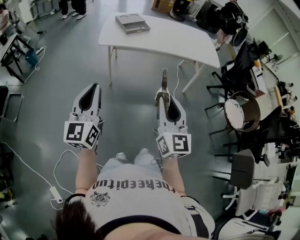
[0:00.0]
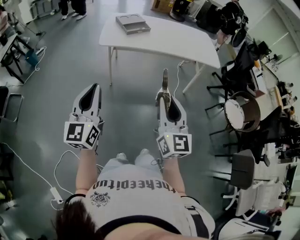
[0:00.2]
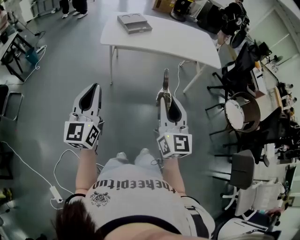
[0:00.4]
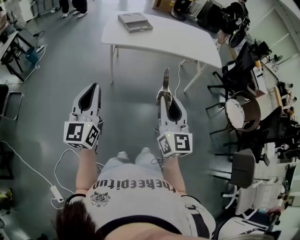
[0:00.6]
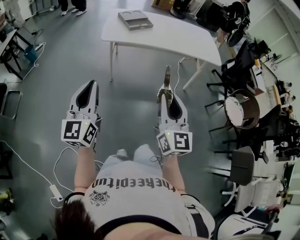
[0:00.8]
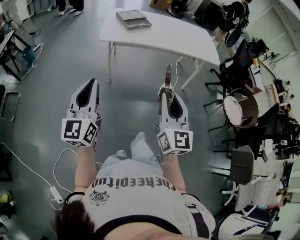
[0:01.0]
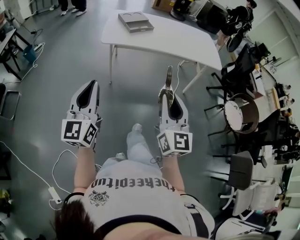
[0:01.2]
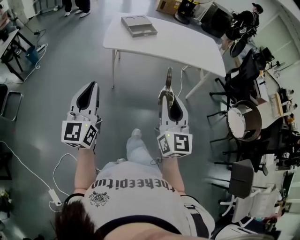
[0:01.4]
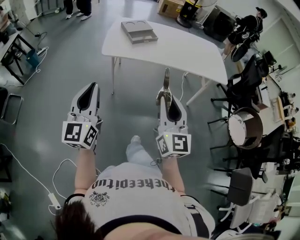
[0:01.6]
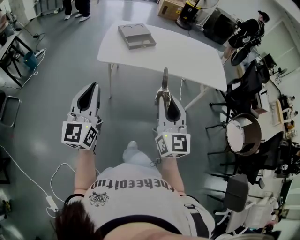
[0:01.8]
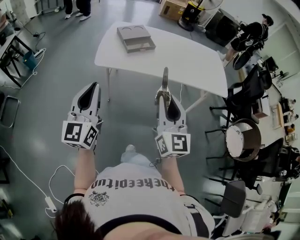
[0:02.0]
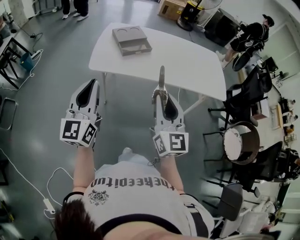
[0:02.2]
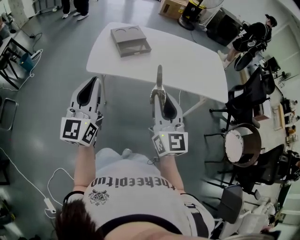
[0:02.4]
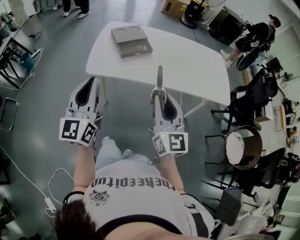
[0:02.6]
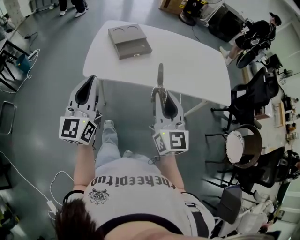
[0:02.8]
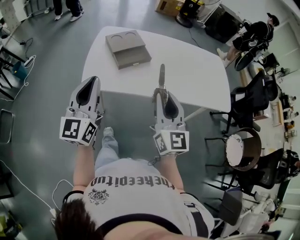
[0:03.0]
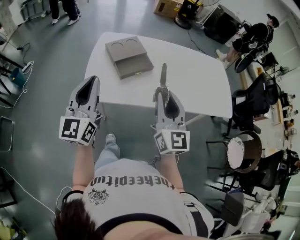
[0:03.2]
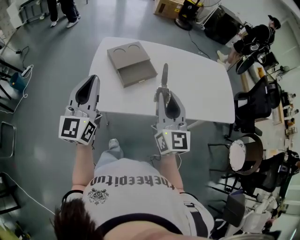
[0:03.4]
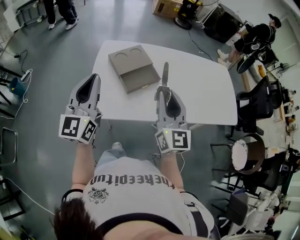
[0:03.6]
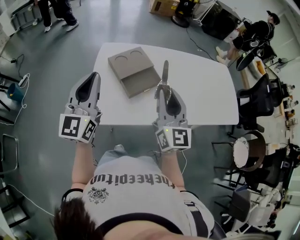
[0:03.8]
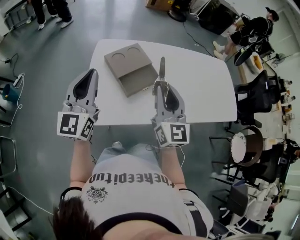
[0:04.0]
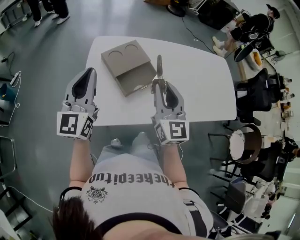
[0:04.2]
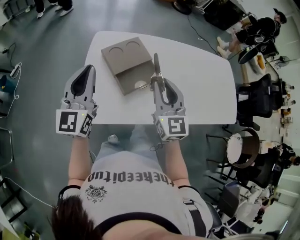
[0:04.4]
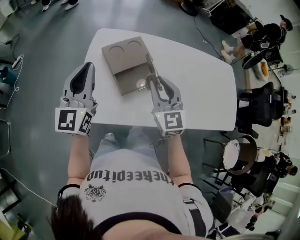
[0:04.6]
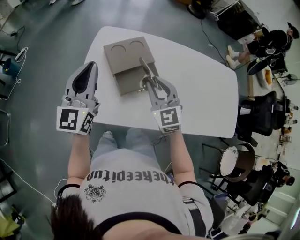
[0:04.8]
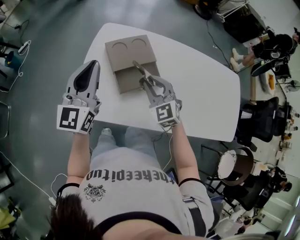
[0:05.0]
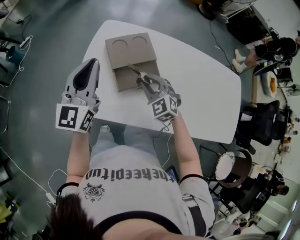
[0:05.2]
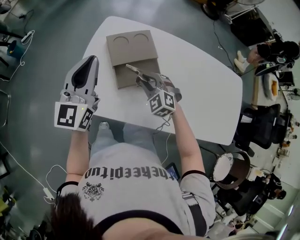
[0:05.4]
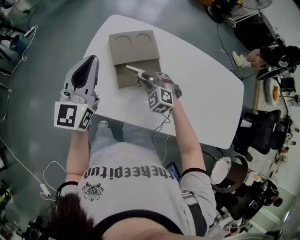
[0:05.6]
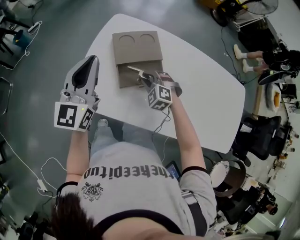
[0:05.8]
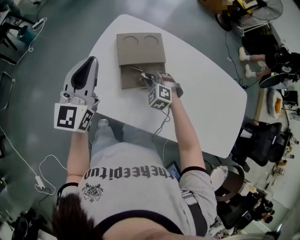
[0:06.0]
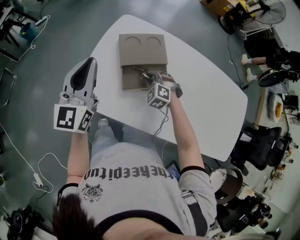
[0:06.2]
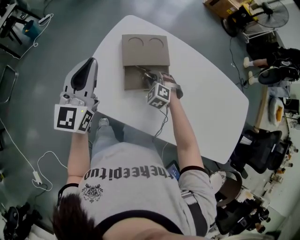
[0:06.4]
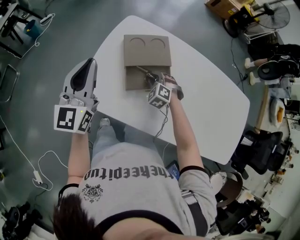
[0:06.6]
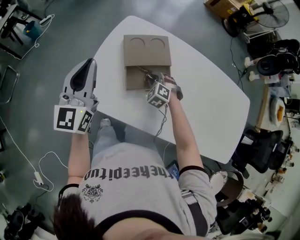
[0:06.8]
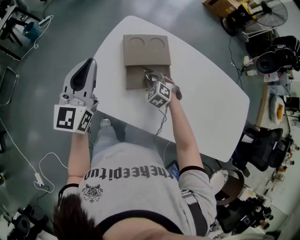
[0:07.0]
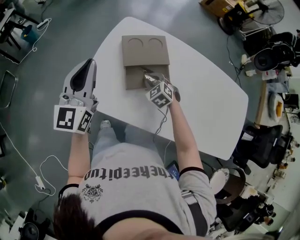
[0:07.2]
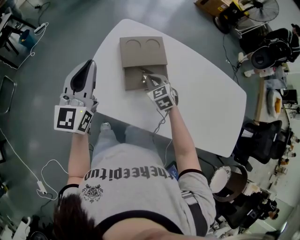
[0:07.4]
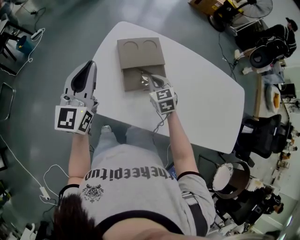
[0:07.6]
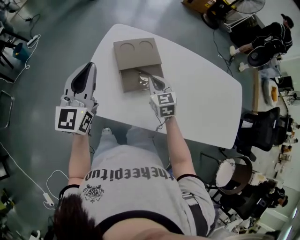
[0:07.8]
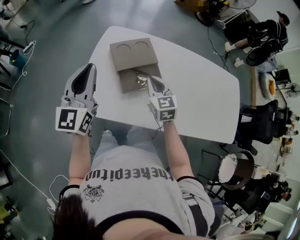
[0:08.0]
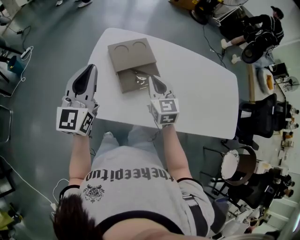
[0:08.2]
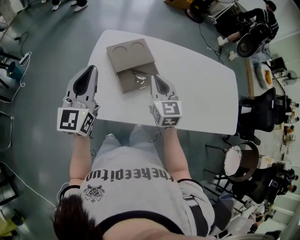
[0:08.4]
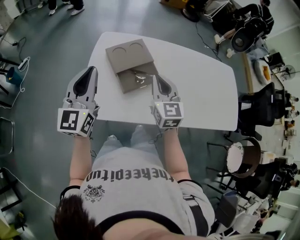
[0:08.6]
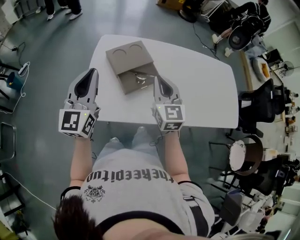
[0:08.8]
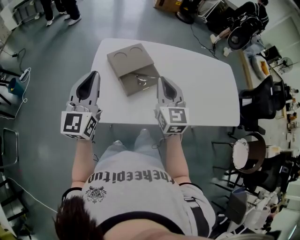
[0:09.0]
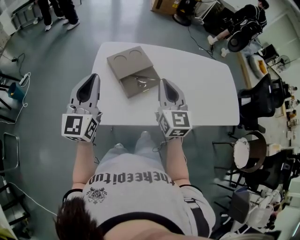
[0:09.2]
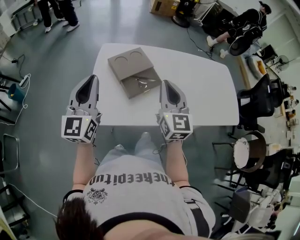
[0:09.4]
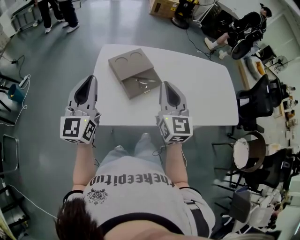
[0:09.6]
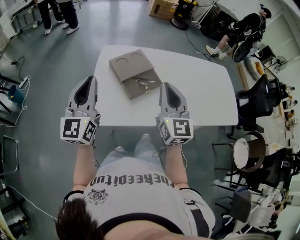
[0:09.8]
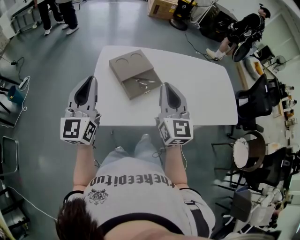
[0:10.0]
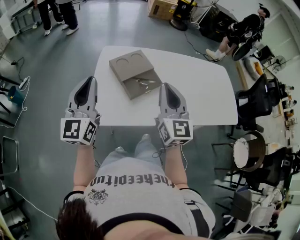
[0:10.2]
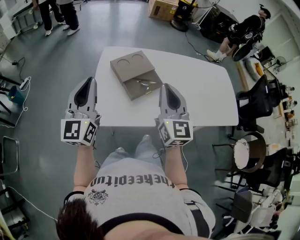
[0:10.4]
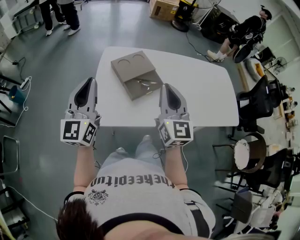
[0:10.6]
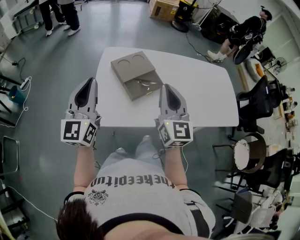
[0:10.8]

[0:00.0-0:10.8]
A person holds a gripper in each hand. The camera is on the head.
0:00.0 to 0:01.6: Both grippers move forward, about 15 cm.
0:01.6 to 0:03.0: The two grippers go about 35 cm forward.
0:03.0 to 0:04.6: Both grippers travel together forward, approximately 30 cm. The right gripper changes its angle by about 20 degrees.
0:04.6 to 0:06.2: The right gripper is displaced downward by about 25 cm, and angles its fingers downward, by roughly 40 degrees.
0:06.2 to 0:07.8: The right gripper goes roughly 10 cm upward, and rolls clockwise, seen from behind, by approximately 50 degrees.
0:07.8 to 0:09.2: The left gripper ends up approximately 5 cm from where it was, while the right gripper heads upward and backward, covering roughly 20 cm, and swivels roughly 30 degrees.
0:09.2 to 0:10.8: The left gripper shifts by about 5 cm; the right gripper ends up some 5 cm from where it was.

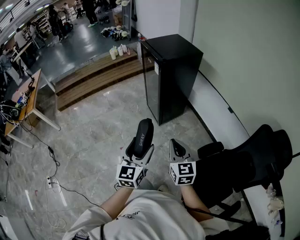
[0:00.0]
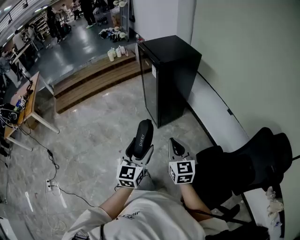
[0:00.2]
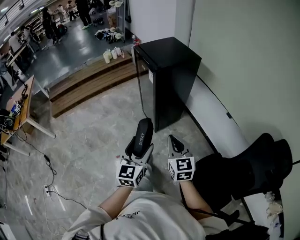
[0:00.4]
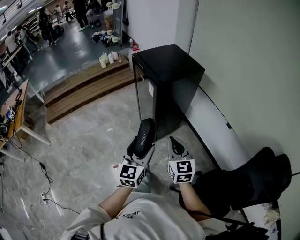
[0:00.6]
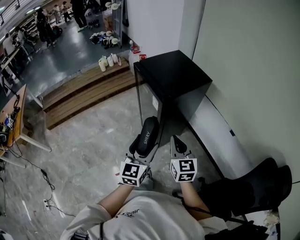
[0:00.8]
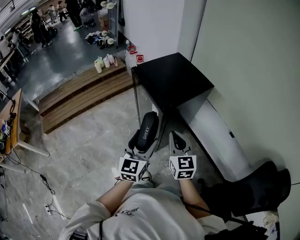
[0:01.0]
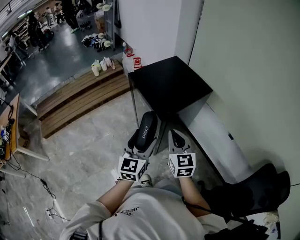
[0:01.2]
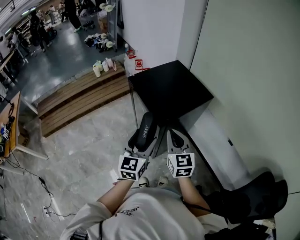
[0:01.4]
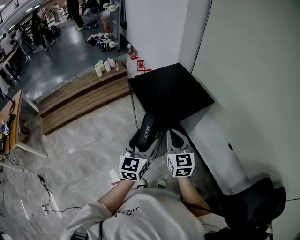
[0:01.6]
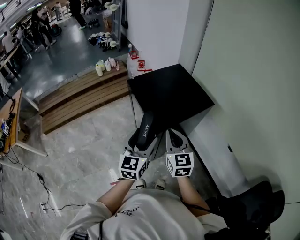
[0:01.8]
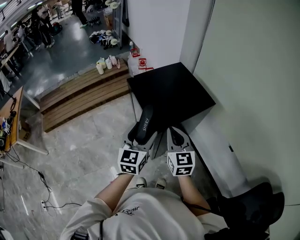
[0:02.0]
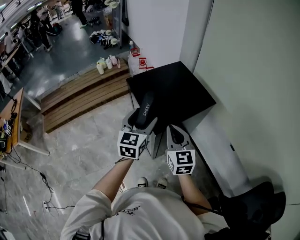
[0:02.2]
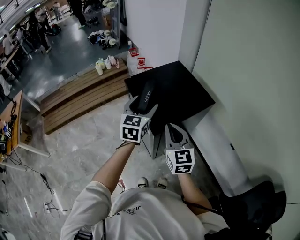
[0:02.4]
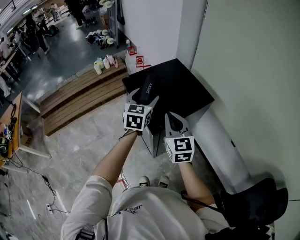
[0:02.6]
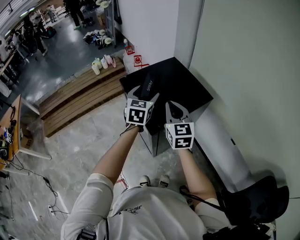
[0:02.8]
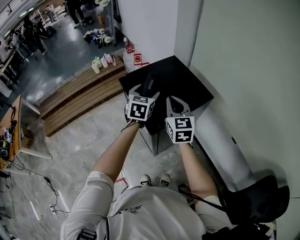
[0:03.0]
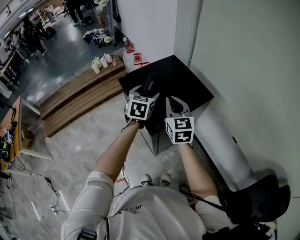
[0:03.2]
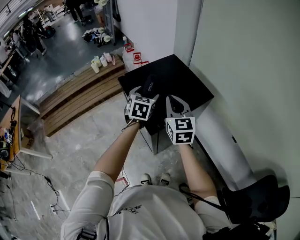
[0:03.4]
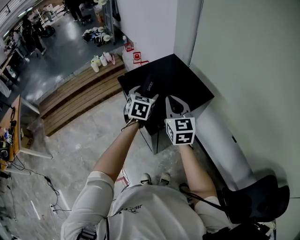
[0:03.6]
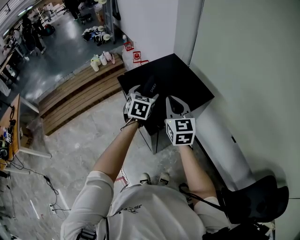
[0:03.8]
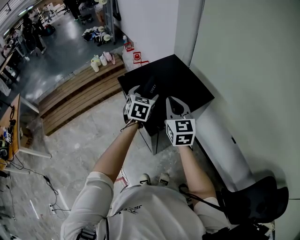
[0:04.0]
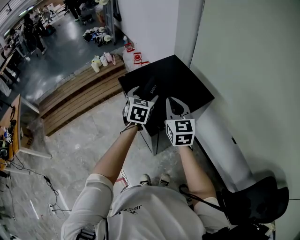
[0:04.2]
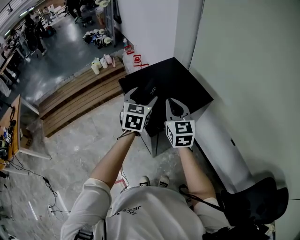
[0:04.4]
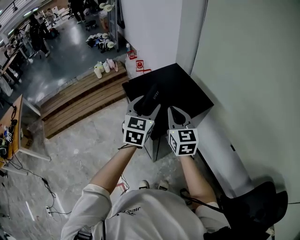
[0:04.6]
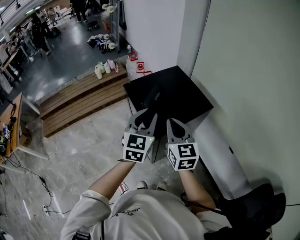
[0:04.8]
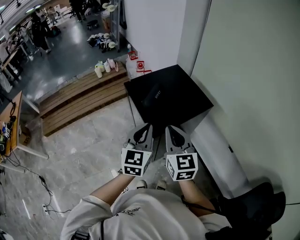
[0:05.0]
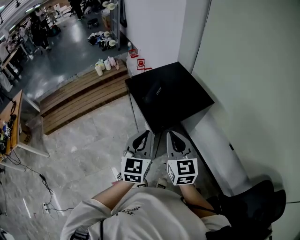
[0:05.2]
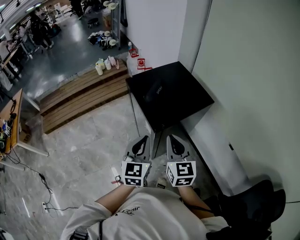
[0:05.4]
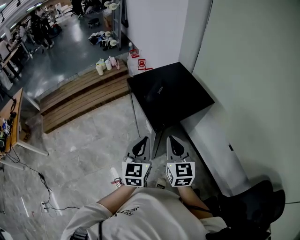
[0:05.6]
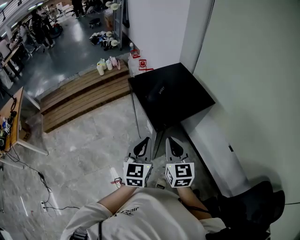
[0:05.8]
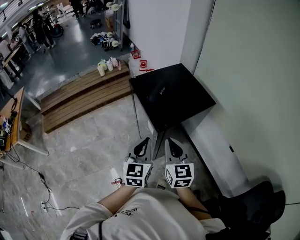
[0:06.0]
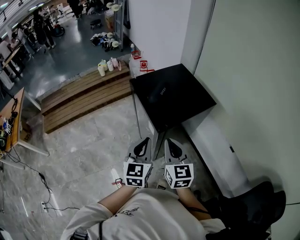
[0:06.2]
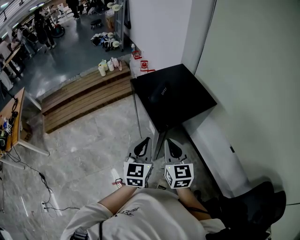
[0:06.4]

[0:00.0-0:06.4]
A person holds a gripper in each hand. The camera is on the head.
0:00.0 to 0:01.6: Both grippers are carried forward, roughly 50 cm.
0:01.6 to 0:03.2: The right gripper goes approximately 15 cm forward, while the left gripper moves forward, some 25 cm, and changes its angle by approximately 20 degrees.
0:03.2 to 0:04.8: The left gripper heads backward and upward, covering roughly 15 cm, and closes. The right gripper is displaced backward by approximately 10 cm.
0:04.8 to 0:06.4: Both grippers travel together backward and downward, approximately 15 cm.

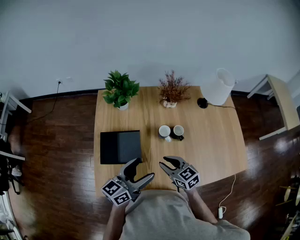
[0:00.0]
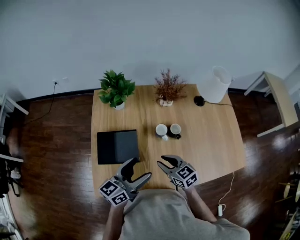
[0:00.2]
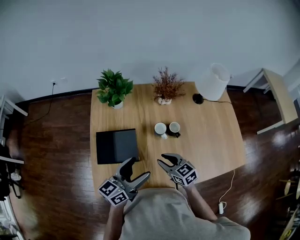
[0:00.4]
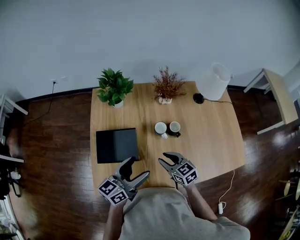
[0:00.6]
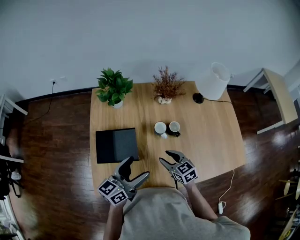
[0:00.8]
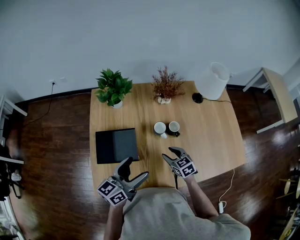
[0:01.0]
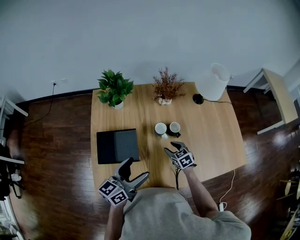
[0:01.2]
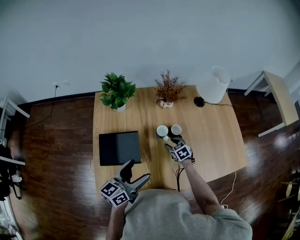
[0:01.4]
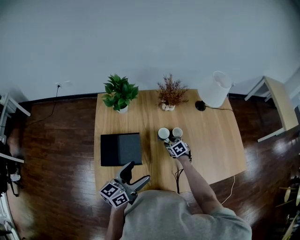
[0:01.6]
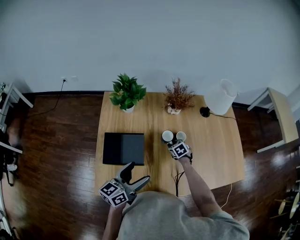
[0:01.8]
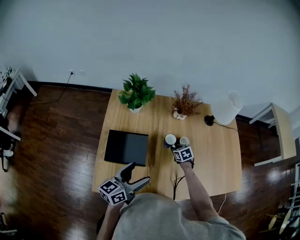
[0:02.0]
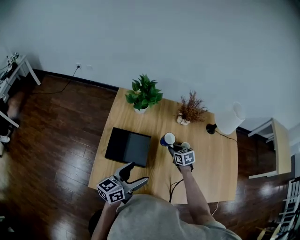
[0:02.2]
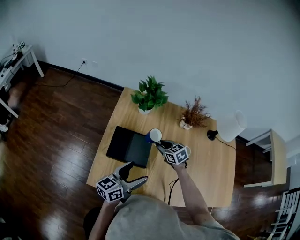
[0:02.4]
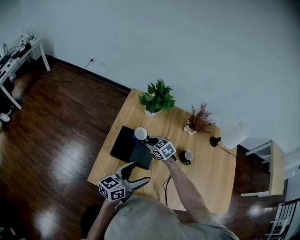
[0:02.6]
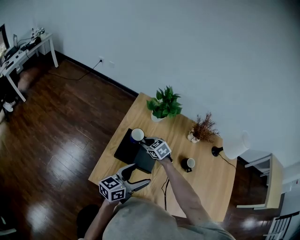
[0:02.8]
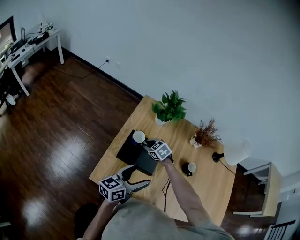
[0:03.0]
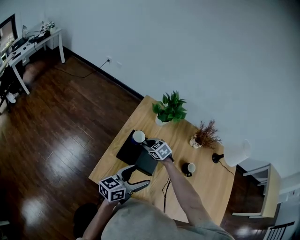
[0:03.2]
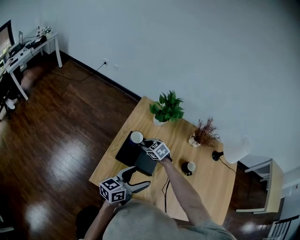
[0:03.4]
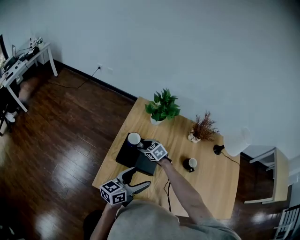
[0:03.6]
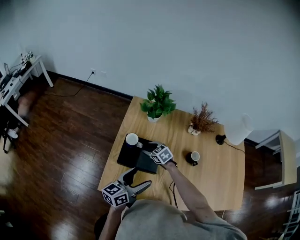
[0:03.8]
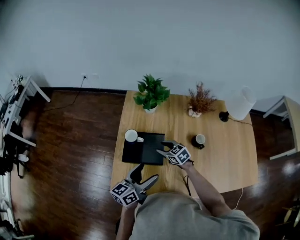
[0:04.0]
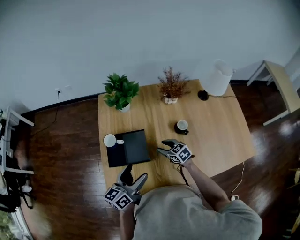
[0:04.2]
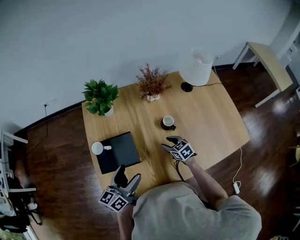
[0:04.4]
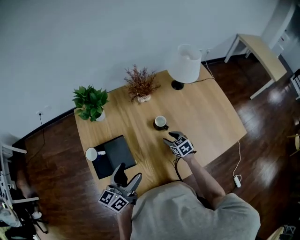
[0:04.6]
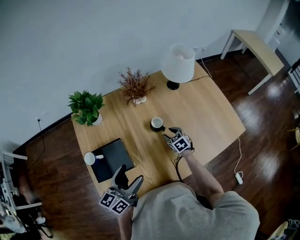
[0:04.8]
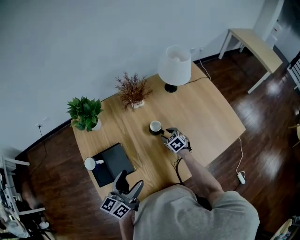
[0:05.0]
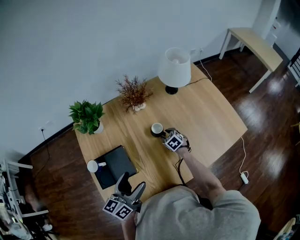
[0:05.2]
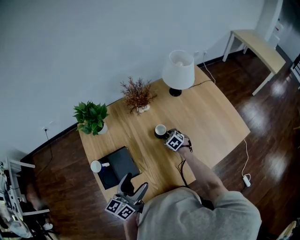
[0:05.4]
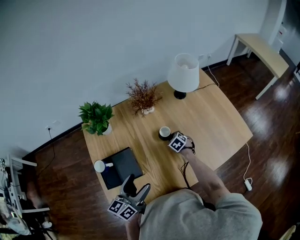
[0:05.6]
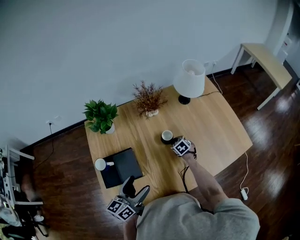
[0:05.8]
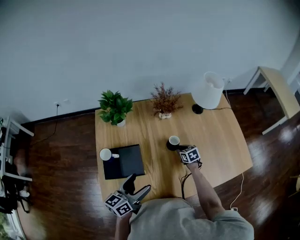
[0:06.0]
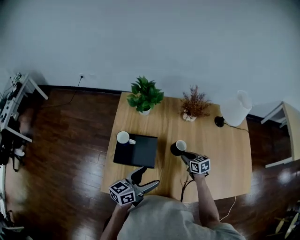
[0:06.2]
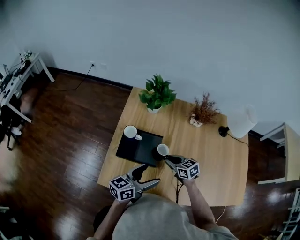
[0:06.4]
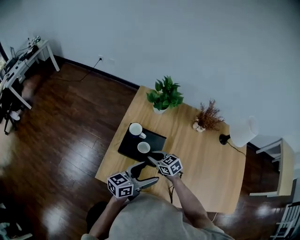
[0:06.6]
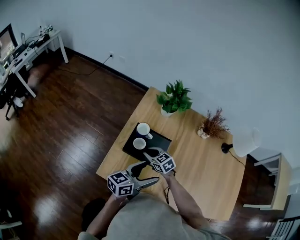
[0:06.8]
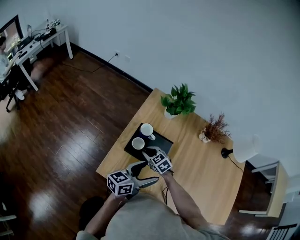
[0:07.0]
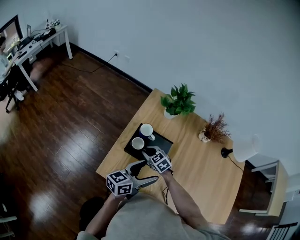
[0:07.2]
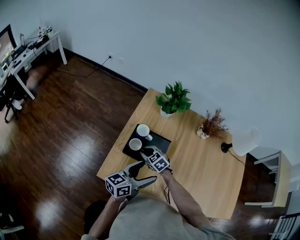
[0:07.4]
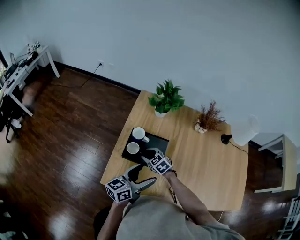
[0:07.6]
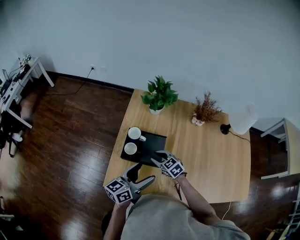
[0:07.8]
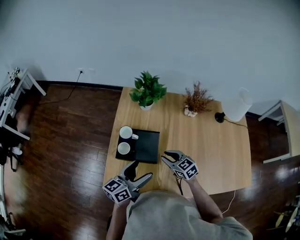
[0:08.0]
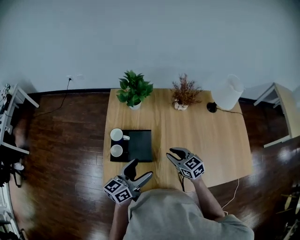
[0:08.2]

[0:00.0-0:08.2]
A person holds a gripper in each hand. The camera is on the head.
0:00.0 to 0:01.6: The right gripper goes about 25 cm downward, forward and to the right, and changes its angle by roughly 30 degrees.
0:01.6 to 0:03.2: The left gripper changes place by some 10 cm. The right gripper moves about 35 cm, and changes its angle by some 50 degrees.
0:03.2 to 0:05.0: The right gripper moves some 40 cm, rotates approximately 60 degrees, and opens up. Meanwhile the left gripper moves about 10 cm, and turns by approximately 20 degrees.
0:05.0 to 0:06.6: The left gripper shifts by roughly 10 cm. Meanwhile the right gripper changes place by about 35 cm, swivels approximately 50 degrees, and closes.
0:06.6 to 0:08.2: The right gripper moves to the right and upward, some 15 cm, and turns by some 20 degrees.
